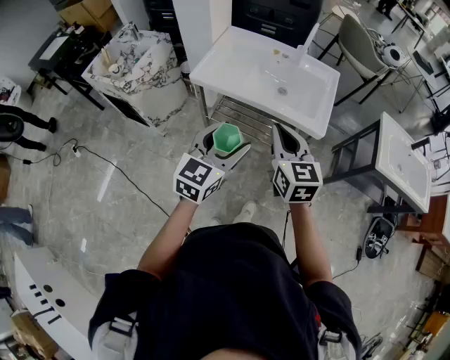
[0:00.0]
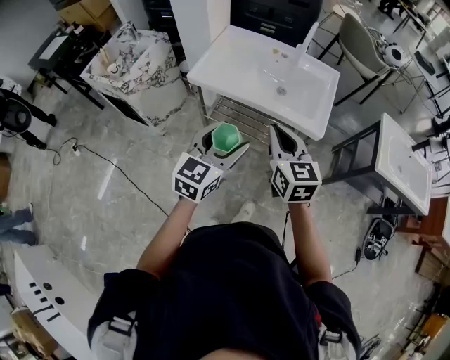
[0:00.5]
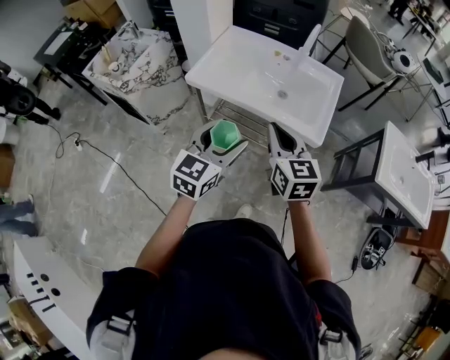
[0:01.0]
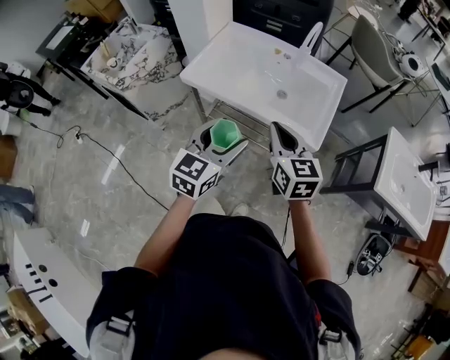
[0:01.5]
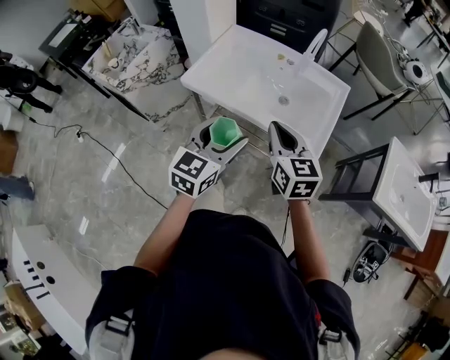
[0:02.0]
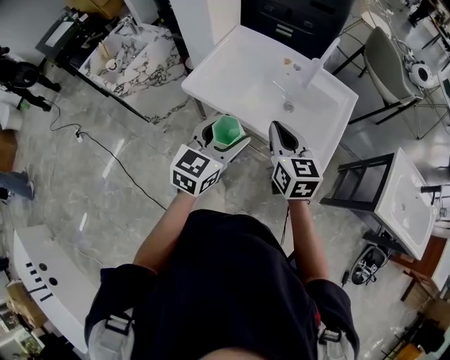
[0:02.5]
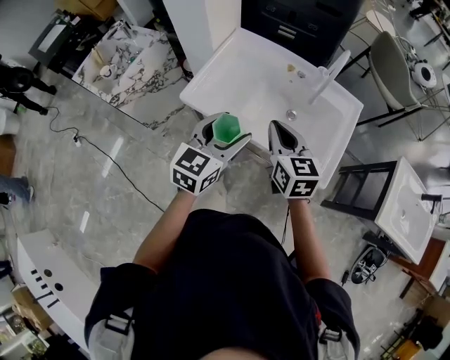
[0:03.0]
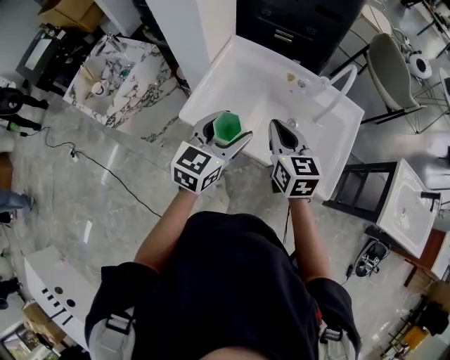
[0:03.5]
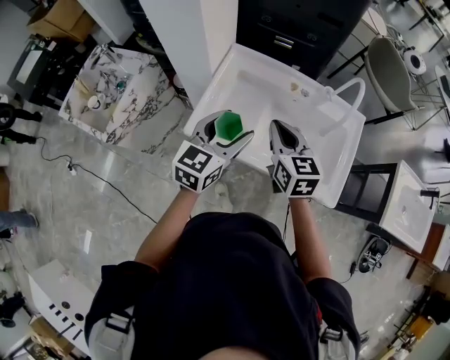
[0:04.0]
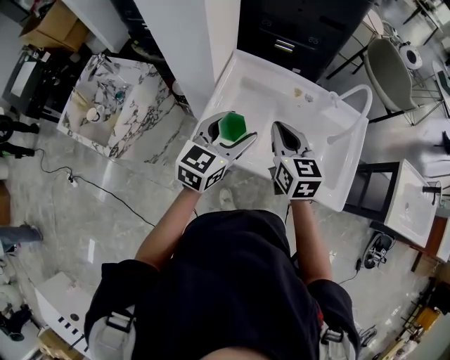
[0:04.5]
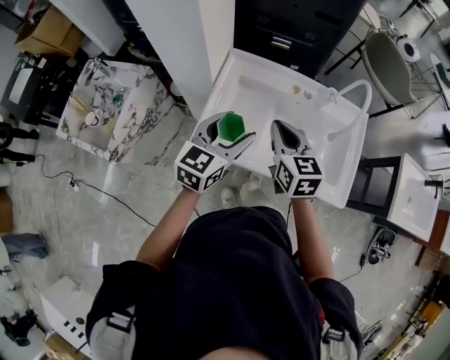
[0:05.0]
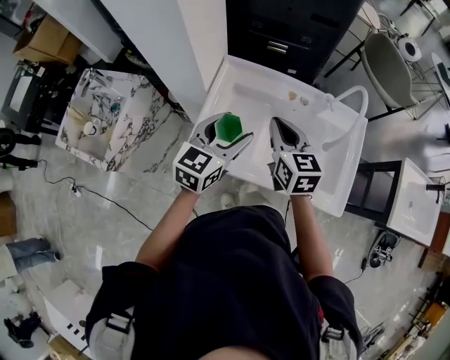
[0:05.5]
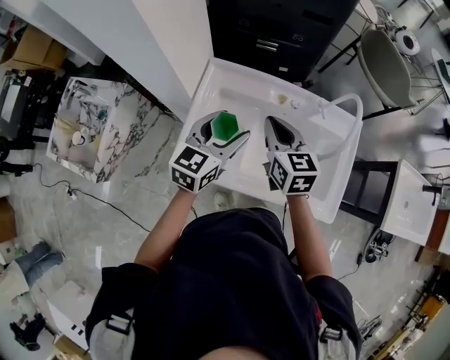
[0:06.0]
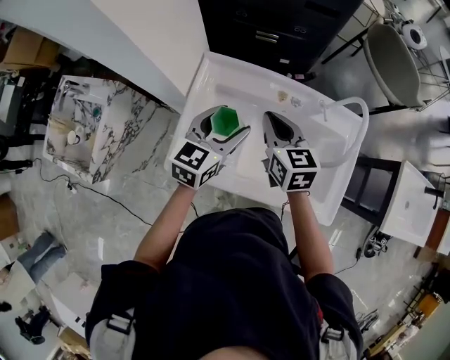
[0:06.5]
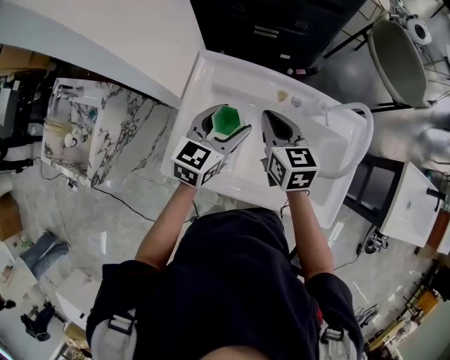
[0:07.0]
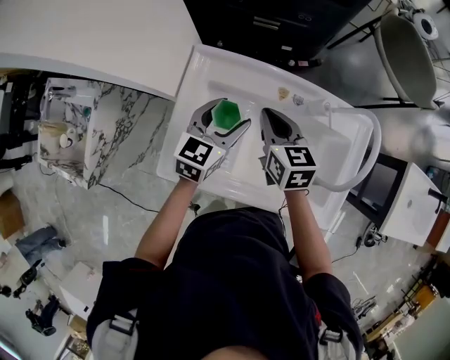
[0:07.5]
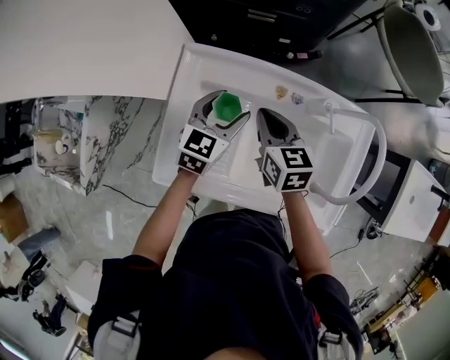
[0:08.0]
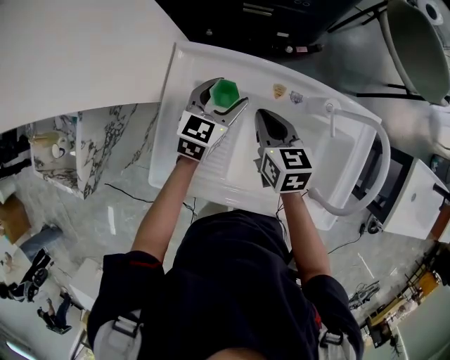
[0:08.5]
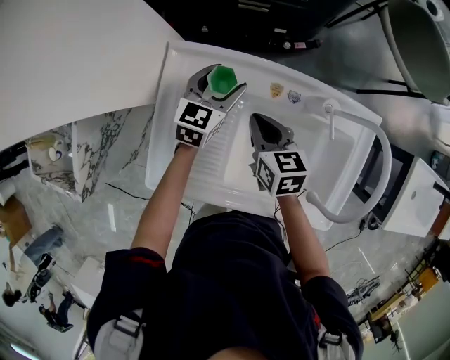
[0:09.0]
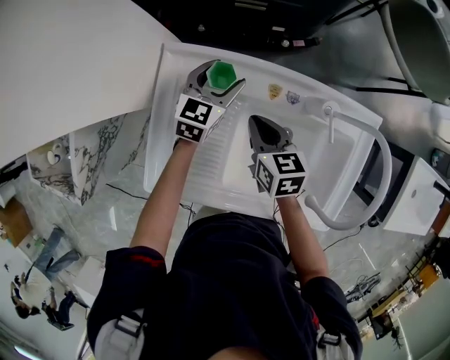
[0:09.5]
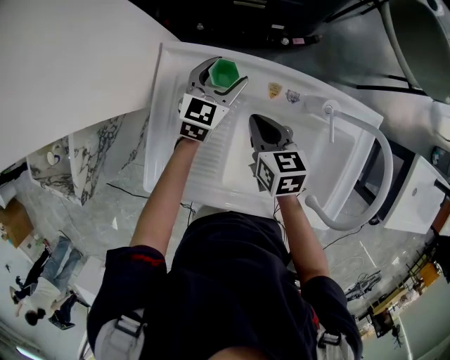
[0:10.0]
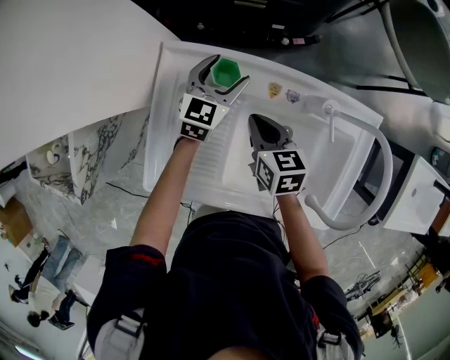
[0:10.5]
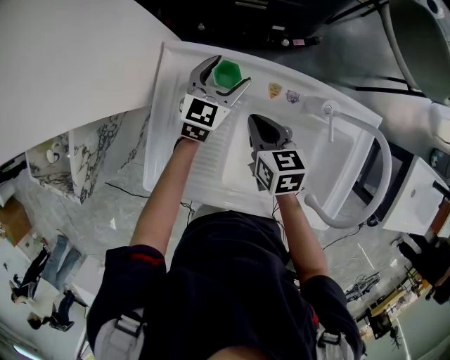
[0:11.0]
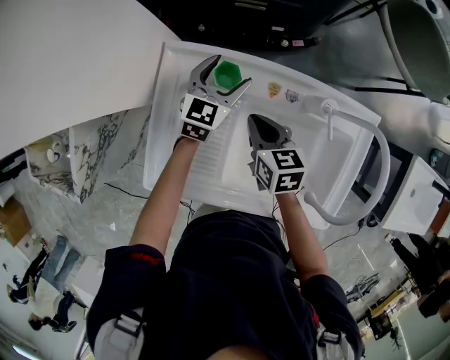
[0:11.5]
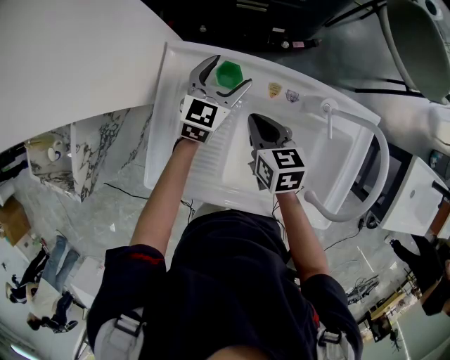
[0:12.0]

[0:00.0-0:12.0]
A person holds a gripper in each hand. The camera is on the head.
0:00.0 to 0:02.0: Both grippers travel together forward and to the right, about 15 cm.
0:02.0 to 0:04.0: Both grippers travel together forward and to the left, some 30 cm.
0:04.0 to 0:06.0: The grippers both shift forward by about 10 cm.
0:06.0 to 0:08.0: The grippers both shift downward and forward by approximately 15 cm.
0:08.0 to 0:10.0: The left gripper heads forward and downward, covering some 10 cm, while the right gripper heads downward, covering roughly 5 cm.
0:10.0 to 0:12.0: The grippers move only a little.

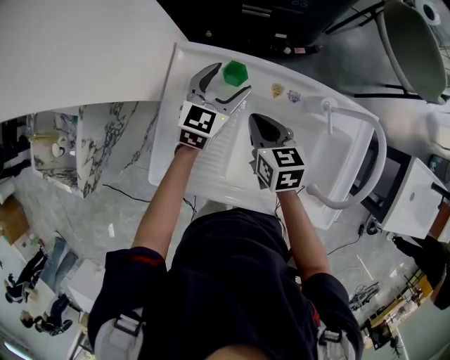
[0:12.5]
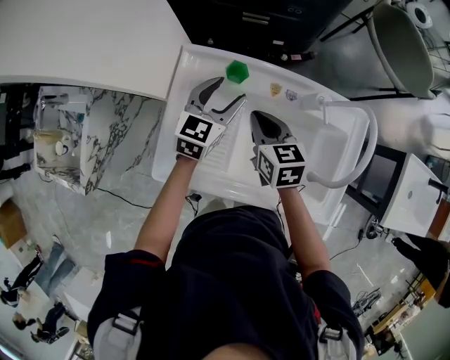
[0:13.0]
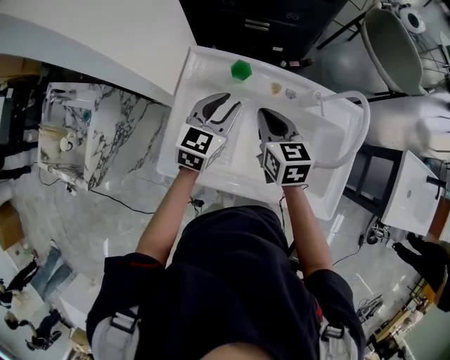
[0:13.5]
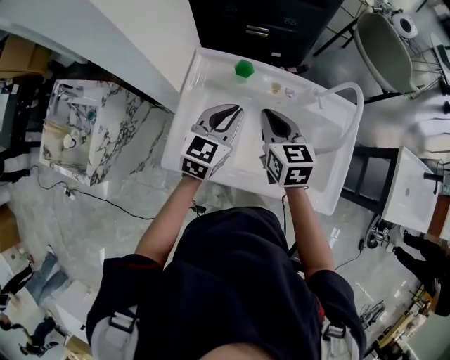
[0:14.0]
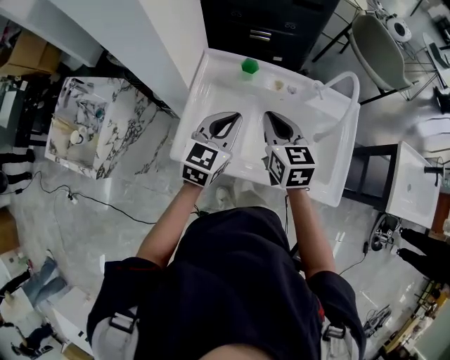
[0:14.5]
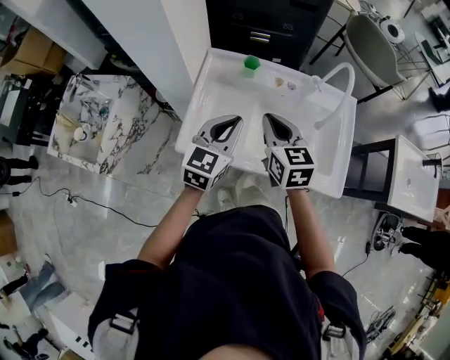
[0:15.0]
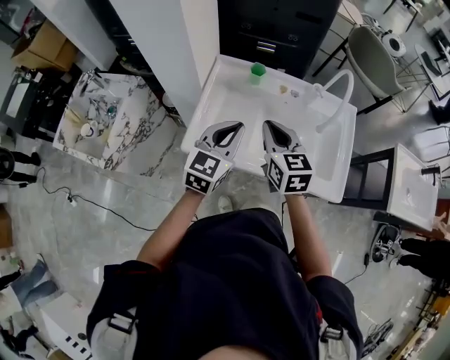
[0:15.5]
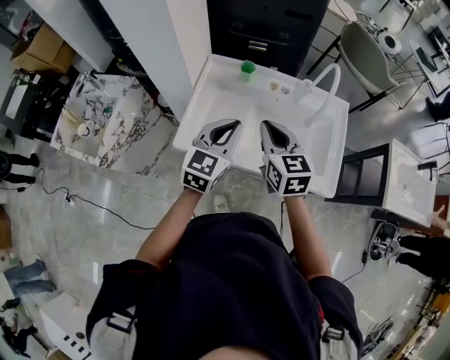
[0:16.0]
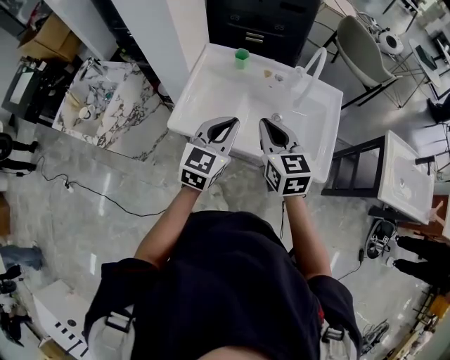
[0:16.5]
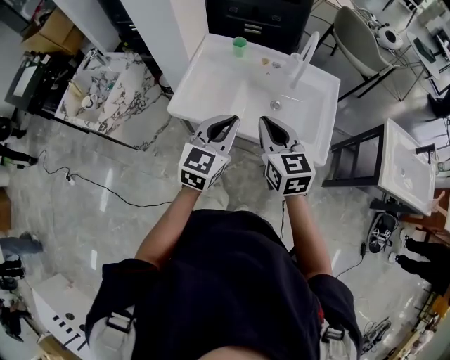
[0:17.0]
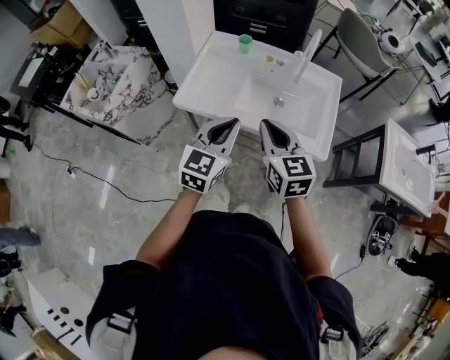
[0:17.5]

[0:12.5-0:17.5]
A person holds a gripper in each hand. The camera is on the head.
0:12.5 to 0:15.0: Both grippers travel together backward and upward, about 25 cm. The right gripper changes its angle by approximately 20 degrees. The left gripper closes.
0:15.0 to 0:17.5: Both grippers travel together backward, approximately 20 cm.

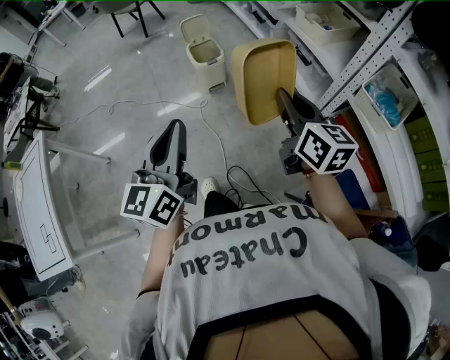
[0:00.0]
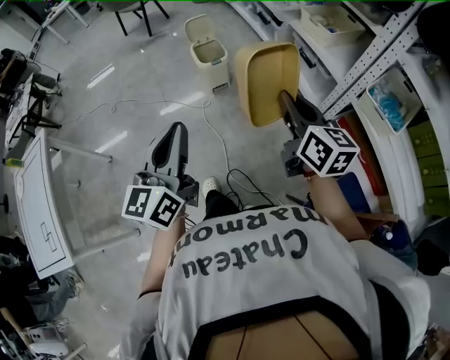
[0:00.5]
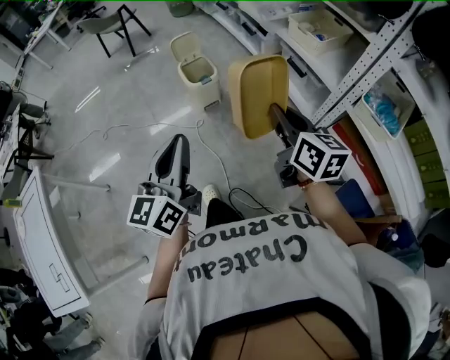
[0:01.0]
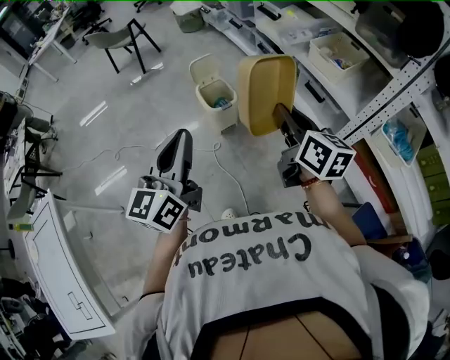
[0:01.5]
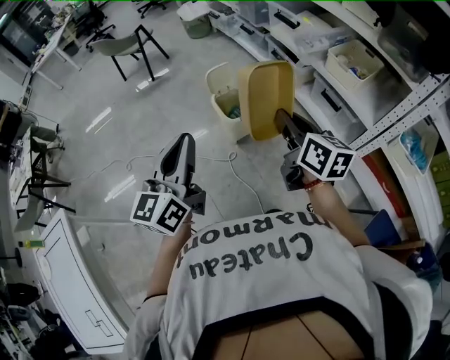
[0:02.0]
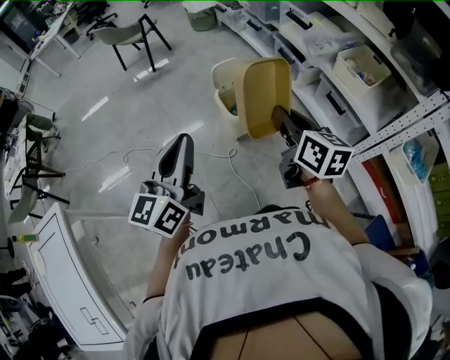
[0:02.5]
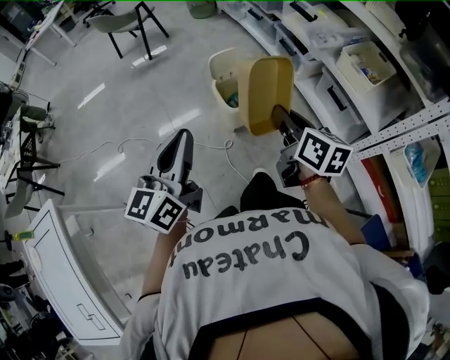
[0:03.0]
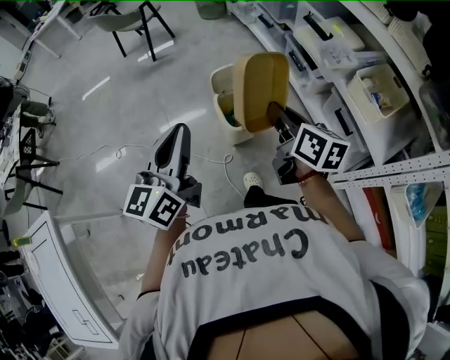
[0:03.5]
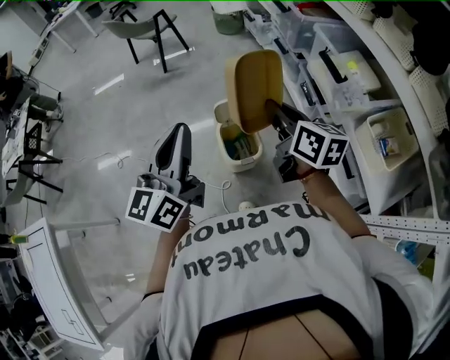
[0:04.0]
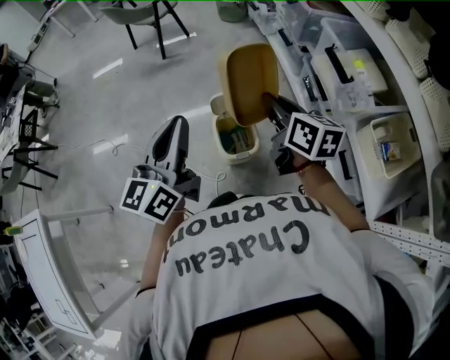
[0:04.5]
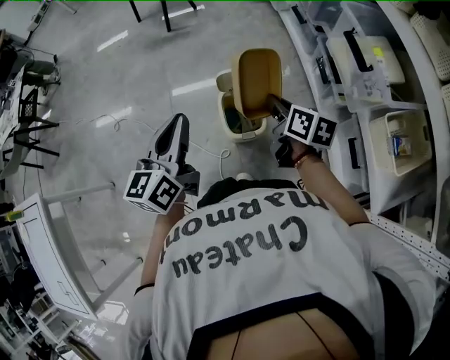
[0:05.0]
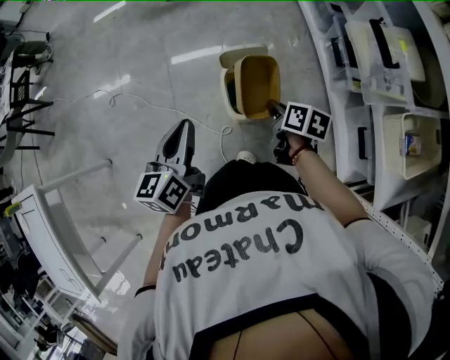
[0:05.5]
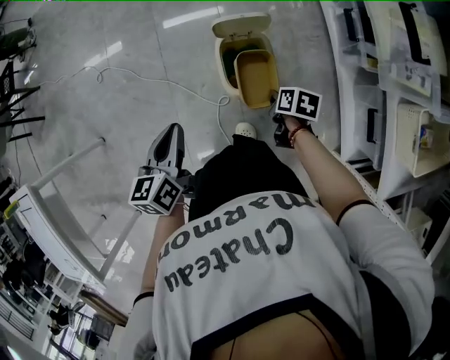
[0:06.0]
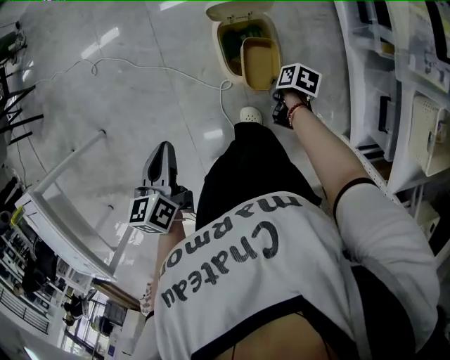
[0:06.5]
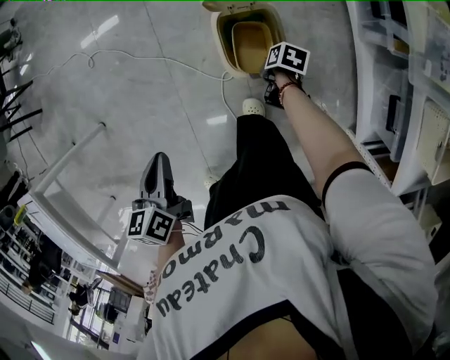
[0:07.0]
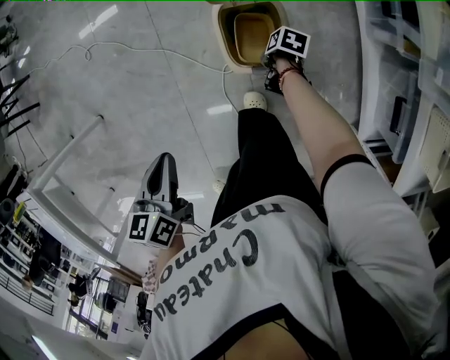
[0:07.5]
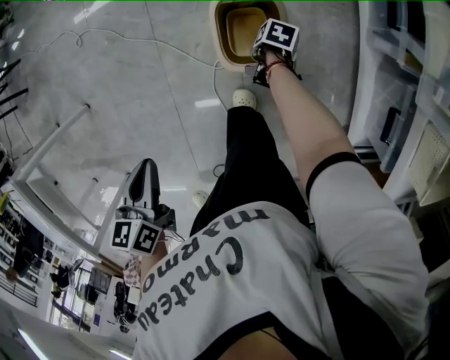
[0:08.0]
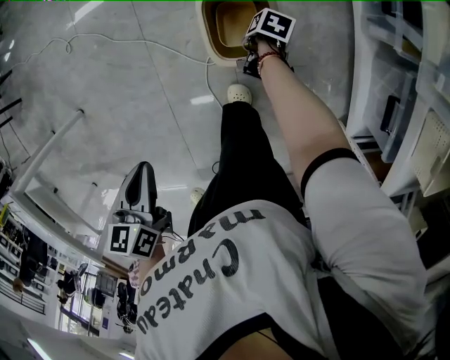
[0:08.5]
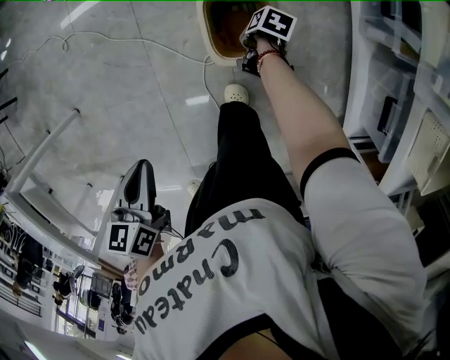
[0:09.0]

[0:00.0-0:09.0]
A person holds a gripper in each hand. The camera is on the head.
0:00.0 to 0:02.0: The two grippers go approximately 35 cm forward and to the left.
0:02.0 to 0:04.5: The two grippers go about 35 cm forward. The right gripper turns by approximately 20 degrees.
0:04.5 to 0:07.0: The left gripper is displaced downward by some 30 cm, and angles its fingers downward, by about 50 degrees, while the right gripper heads downward, covering about 50 cm, and points its fingers approximately 50 degrees further downward.
0:07.0 to 0:09.0: The right gripper moves roughly 5 cm, and opens its fingers.

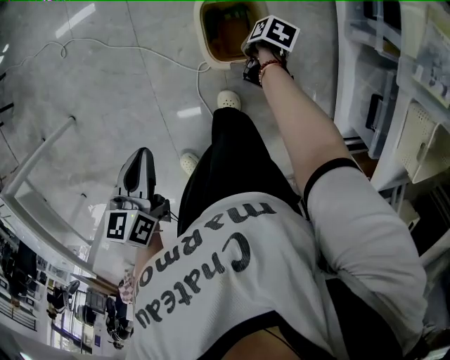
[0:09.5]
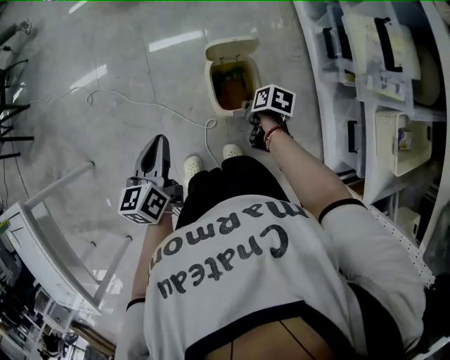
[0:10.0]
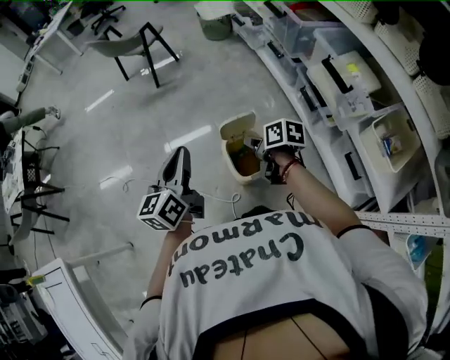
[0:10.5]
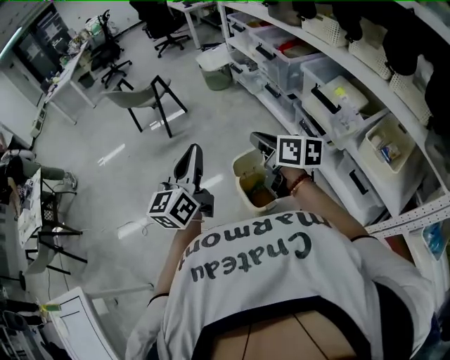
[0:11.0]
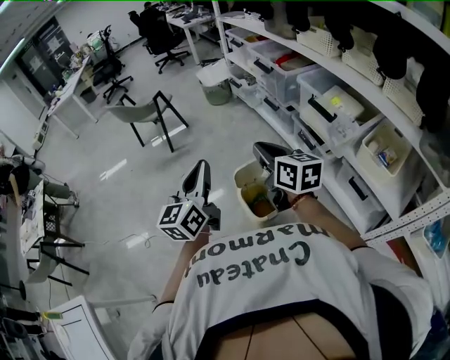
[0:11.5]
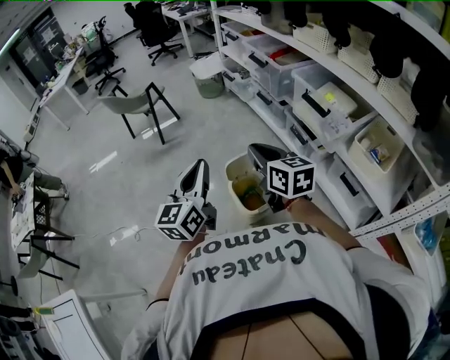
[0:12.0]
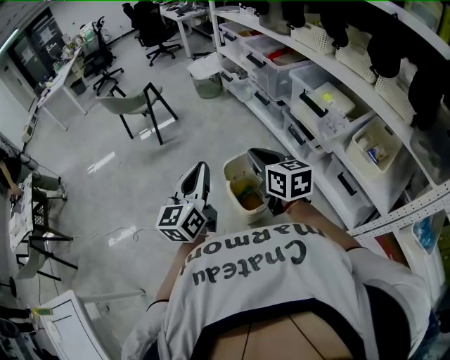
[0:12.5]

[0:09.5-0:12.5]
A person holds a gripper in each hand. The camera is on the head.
0:09.5 to 0:11.0: The left gripper moves upward, roughly 40 cm, and angles its fingers upward, by approximately 50 degrees. The right gripper goes roughly 60 cm upward, tilts its fingers approximately 60 degrees upward, and closes up.
0:11.0 to 0:12.5: The left gripper changes place by approximately 5 cm. Meanwhile the right gripper is displaced backward by some 5 cm, and swivels roughly 20 degrees.
